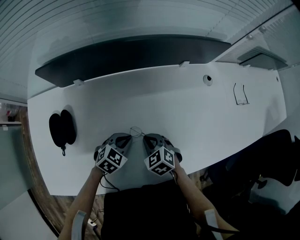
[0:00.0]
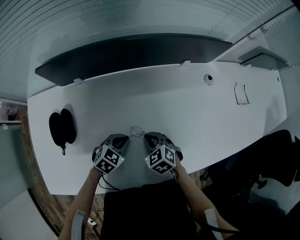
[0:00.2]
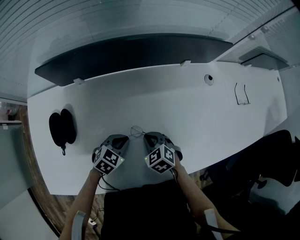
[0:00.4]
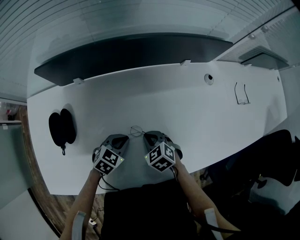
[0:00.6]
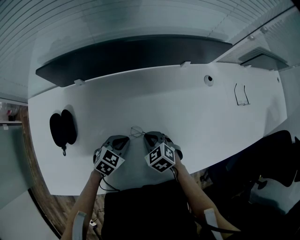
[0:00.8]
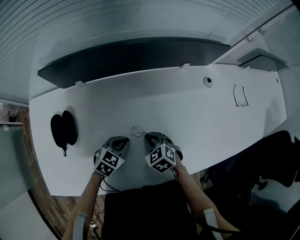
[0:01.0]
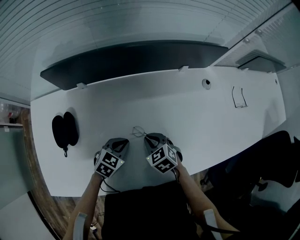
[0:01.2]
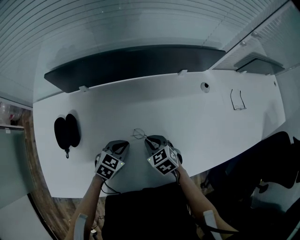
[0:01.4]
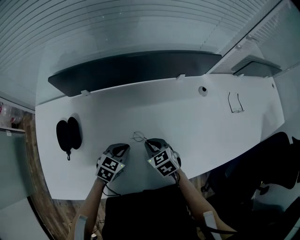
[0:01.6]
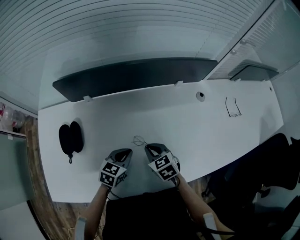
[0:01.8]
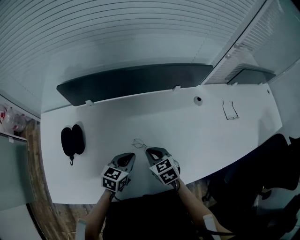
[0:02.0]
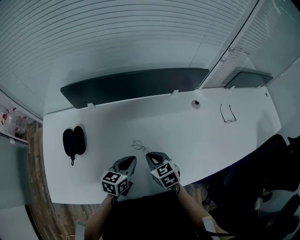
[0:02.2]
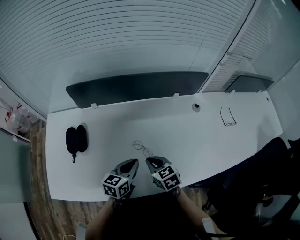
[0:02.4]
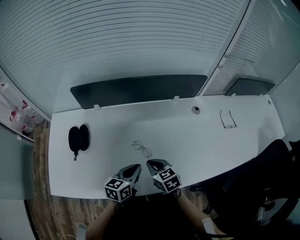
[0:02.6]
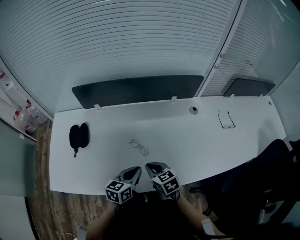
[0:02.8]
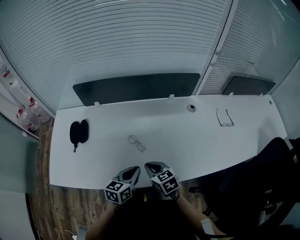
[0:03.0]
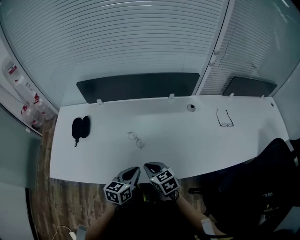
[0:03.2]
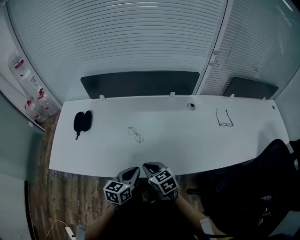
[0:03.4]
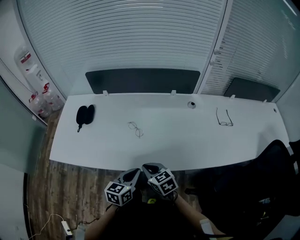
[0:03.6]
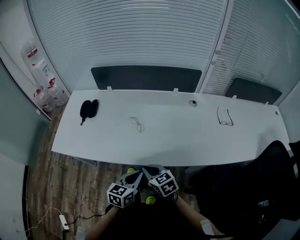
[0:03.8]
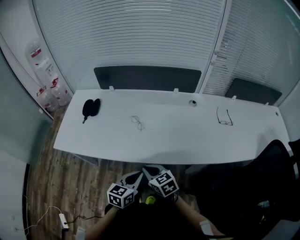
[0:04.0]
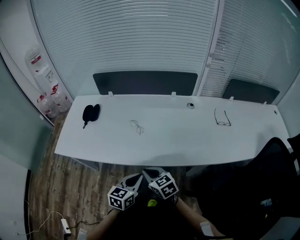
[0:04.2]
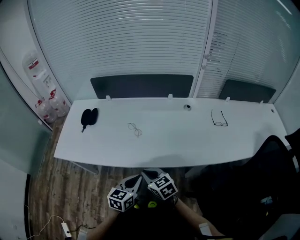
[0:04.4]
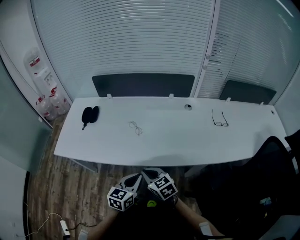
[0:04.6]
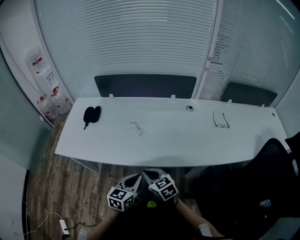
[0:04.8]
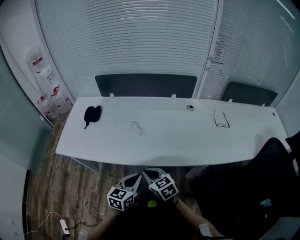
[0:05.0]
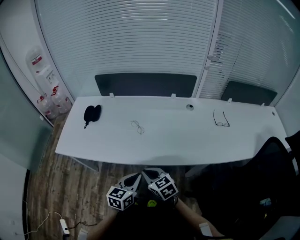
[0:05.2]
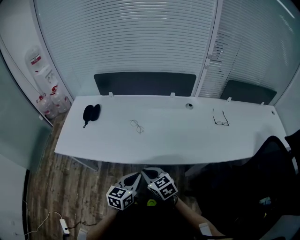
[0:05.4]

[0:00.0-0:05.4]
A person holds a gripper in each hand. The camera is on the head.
0:00.0 to 0:01.4: The grippers move only a little.
0:01.4 to 0:02.8: The right gripper is displaced backward and upward by approximately 15 cm. Meanwhile the left gripper heads backward, upward and to the right, covering about 15 cm, and turns by some 40 degrees.
0:02.8 to 0:04.0: Both grippers move backward, about 20 cm.
0:04.0 to 0:05.4: There are only small adjustments of the grippers.

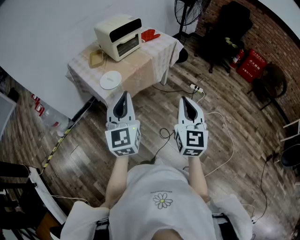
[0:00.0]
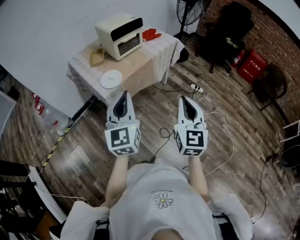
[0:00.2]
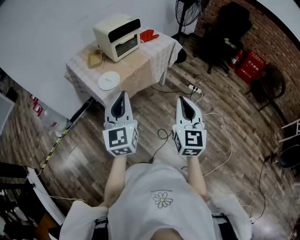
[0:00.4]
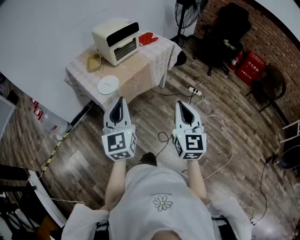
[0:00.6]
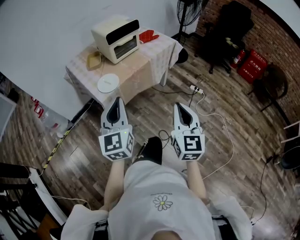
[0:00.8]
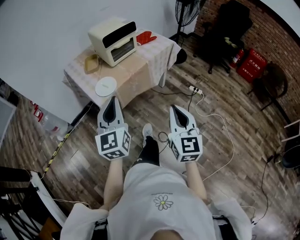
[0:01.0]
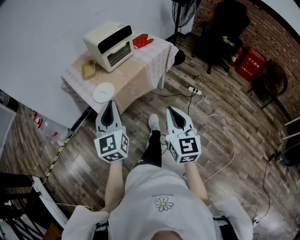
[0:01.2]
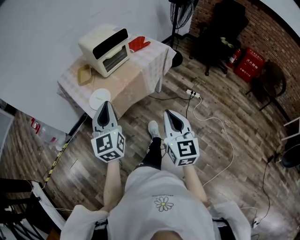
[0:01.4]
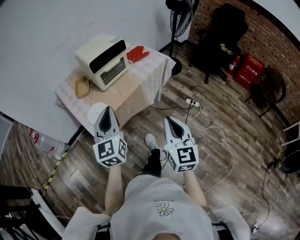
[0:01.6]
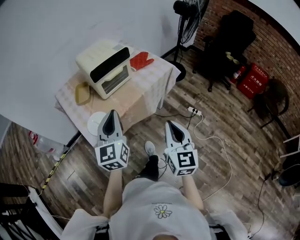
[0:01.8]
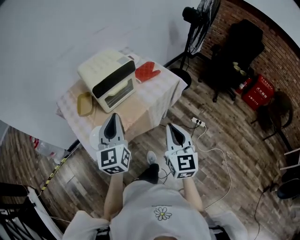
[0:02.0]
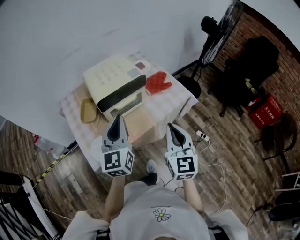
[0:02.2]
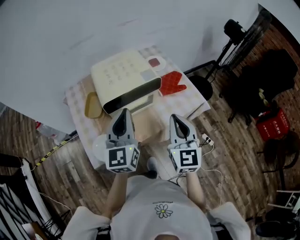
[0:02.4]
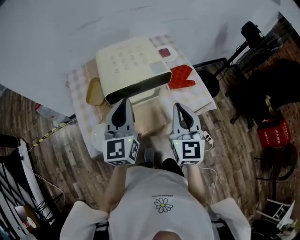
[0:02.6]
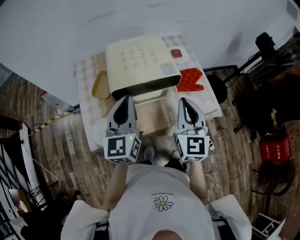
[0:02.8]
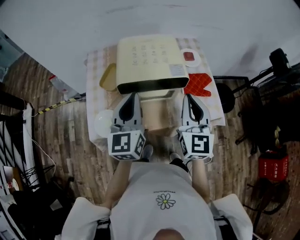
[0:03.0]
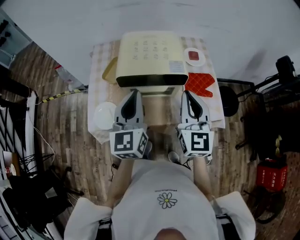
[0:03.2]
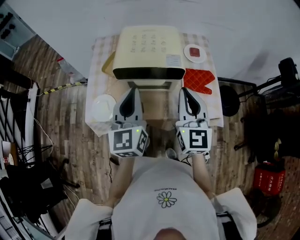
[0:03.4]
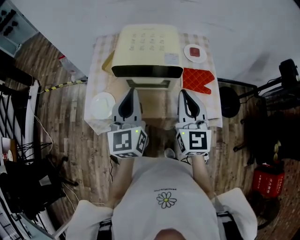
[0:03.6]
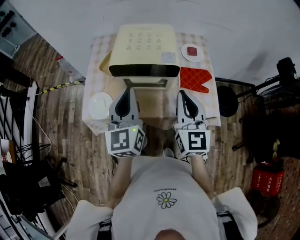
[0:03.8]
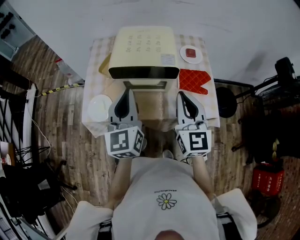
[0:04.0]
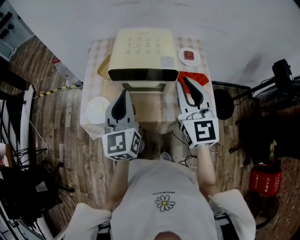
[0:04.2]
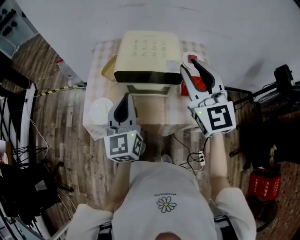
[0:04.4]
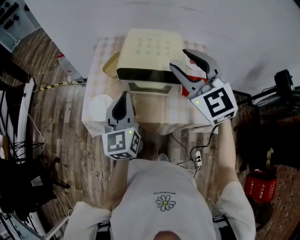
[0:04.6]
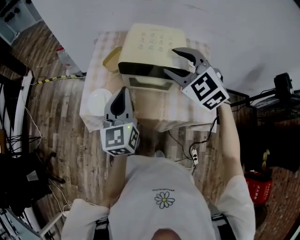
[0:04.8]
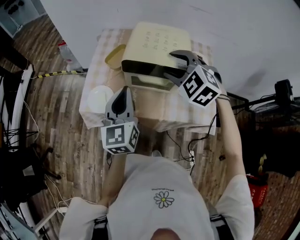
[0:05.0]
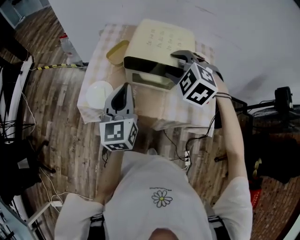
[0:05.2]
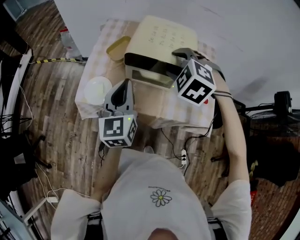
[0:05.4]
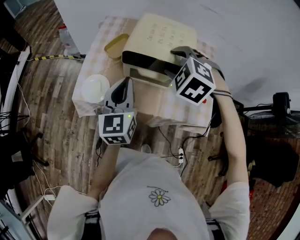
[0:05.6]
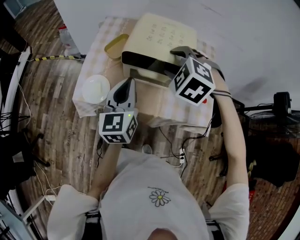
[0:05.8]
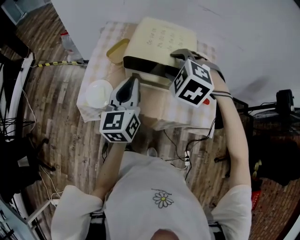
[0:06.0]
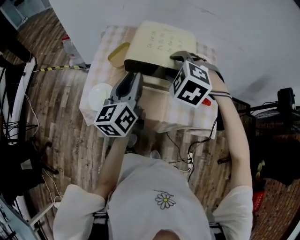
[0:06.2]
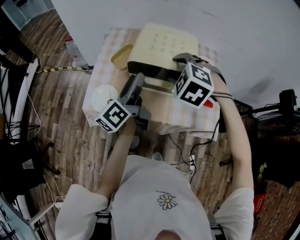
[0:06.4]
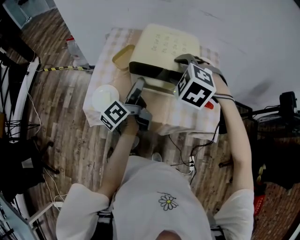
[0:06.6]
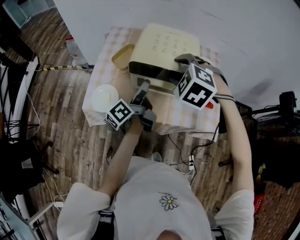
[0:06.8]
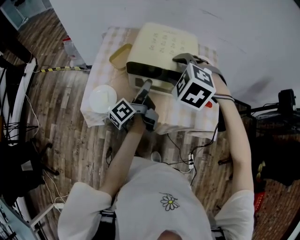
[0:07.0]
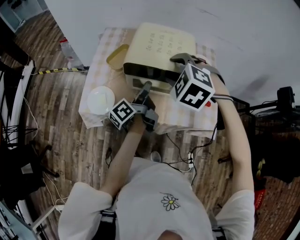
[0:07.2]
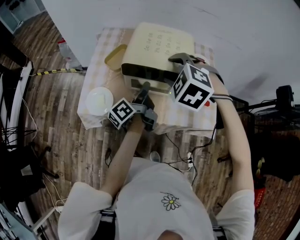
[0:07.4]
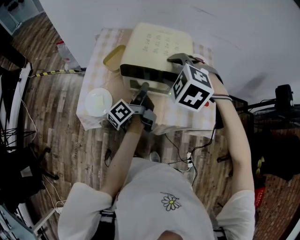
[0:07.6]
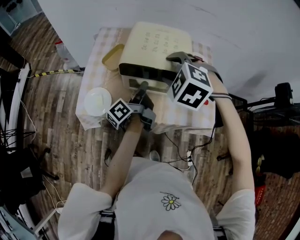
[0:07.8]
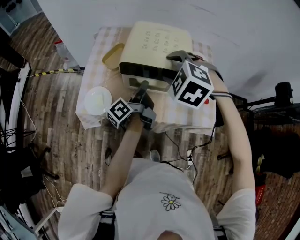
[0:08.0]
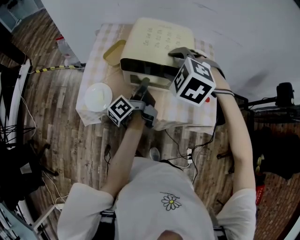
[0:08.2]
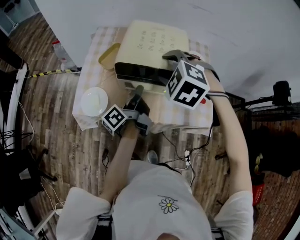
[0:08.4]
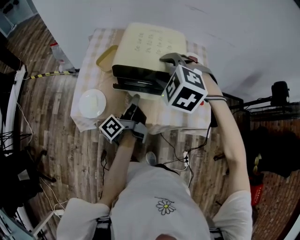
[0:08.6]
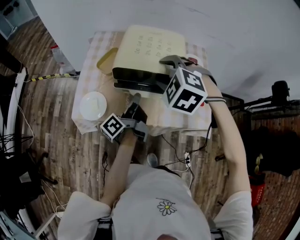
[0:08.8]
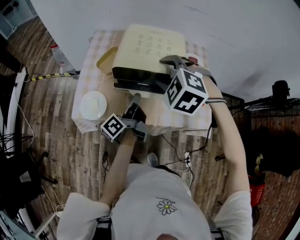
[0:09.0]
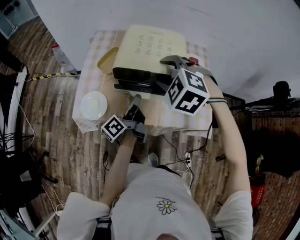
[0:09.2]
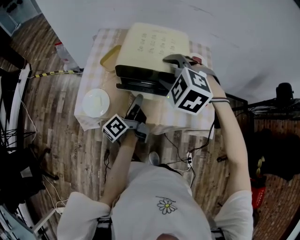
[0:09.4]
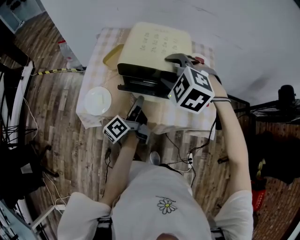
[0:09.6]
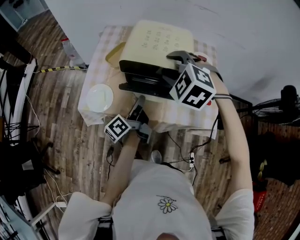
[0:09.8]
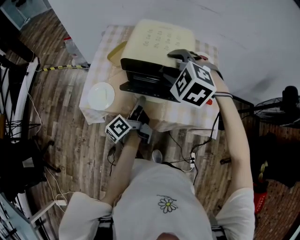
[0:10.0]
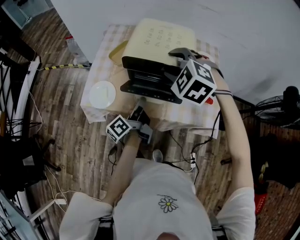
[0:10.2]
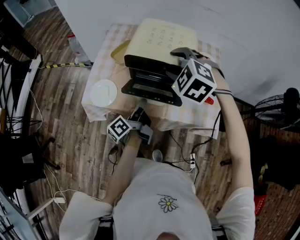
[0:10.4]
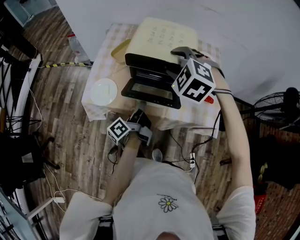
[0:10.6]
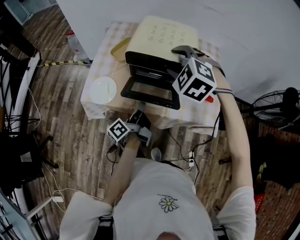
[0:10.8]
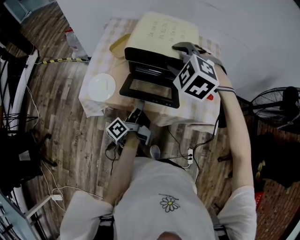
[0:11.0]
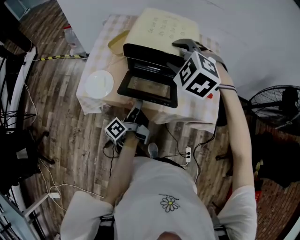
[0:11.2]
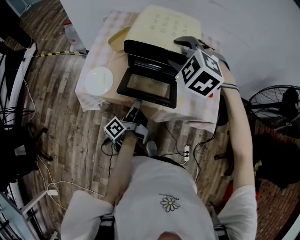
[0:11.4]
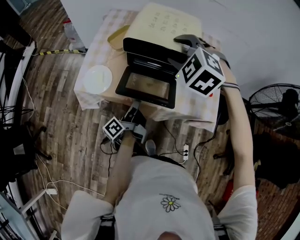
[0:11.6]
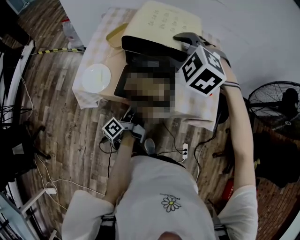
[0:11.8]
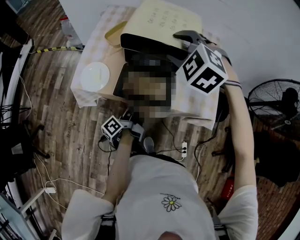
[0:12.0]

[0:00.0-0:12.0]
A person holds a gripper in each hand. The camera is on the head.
0:00.0 to 0:01.6: The two grippers go roughly 15 cm forward.
0:01.6 to 0:03.0: The right gripper moves roughly 50 cm, and swivels approximately 30 degrees. Meanwhile the left gripper shifts by approximately 30 cm, and swivels approximately 30 degrees.
0:03.0 to 0:04.4: The right gripper is displaced upward by roughly 10 cm, and changes its angle by approximately 30 degrees.
0:04.4 to 0:06.0: The right gripper heads downward, forward and to the left, covering some 15 cm, angles its fingers downward, by some 50 degrees, and opens its fingers.
0:06.0 to 0:07.6: The left gripper is displaced downward by approximately 10 cm, rolls counterclockwise, seen from behind, by approximately 70 degrees, and opens, then closes once more.
0:07.6 to 0:09.0: The grippers move only a little.
0:09.0 to 0:10.4: The left gripper heads backward and downward, covering roughly 10 cm.
0:10.4 to 0:12.0: The left gripper is displaced downward by about 10 cm, and closes up.

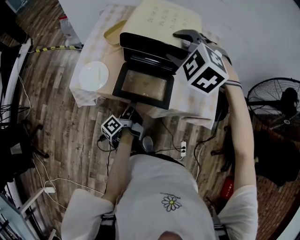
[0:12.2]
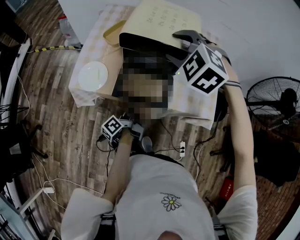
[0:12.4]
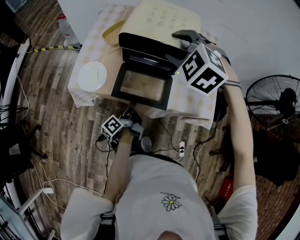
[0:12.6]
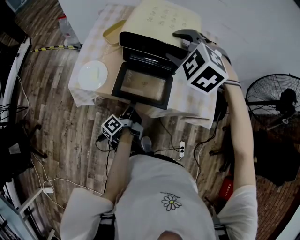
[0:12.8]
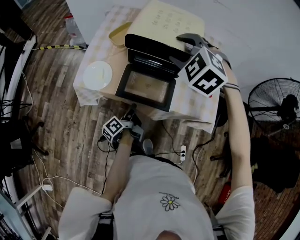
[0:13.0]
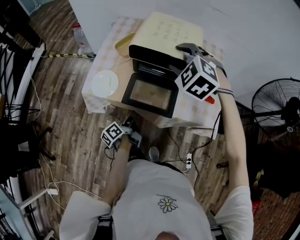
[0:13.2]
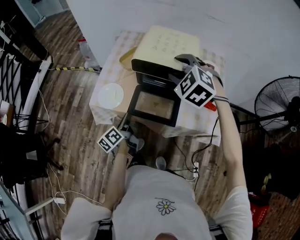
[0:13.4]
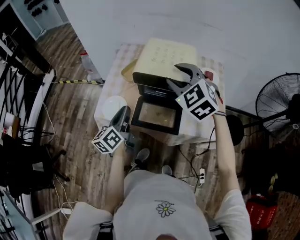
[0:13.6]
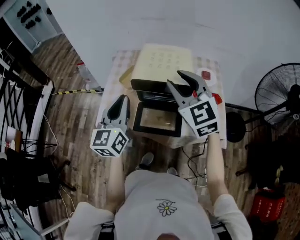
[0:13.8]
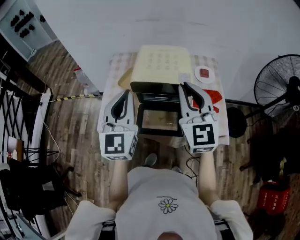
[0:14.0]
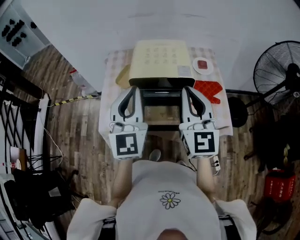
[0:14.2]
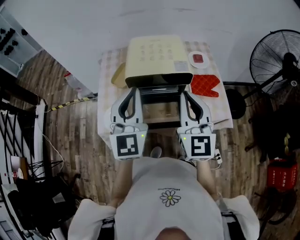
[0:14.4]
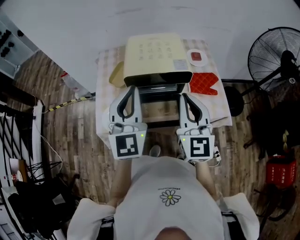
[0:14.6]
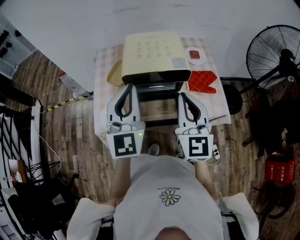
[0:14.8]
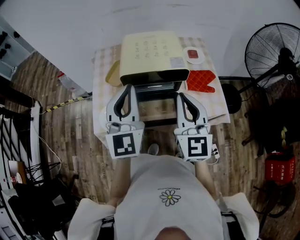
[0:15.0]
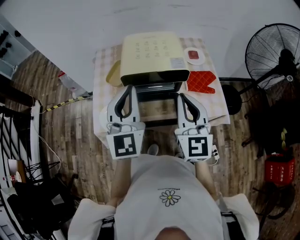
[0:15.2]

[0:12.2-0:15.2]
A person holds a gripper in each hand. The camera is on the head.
0:12.2 to 0:13.8: The left gripper is displaced upward by some 30 cm, and twists roughly 80 degrees clockwise, seen from behind. Meanwhile the right gripper travels upward by roughly 10 cm, and angles its fingers upward, by about 40 degrees.
0:13.8 to 0:15.2: The left gripper moves roughly 5 cm, and swivels about 20 degrees; the right gripper heads backward and downward, covering some 10 cm, changes its angle by approximately 30 degrees, and closes.

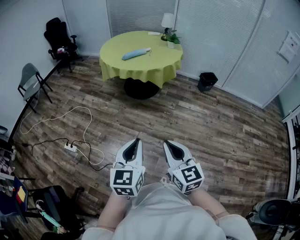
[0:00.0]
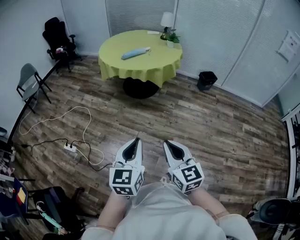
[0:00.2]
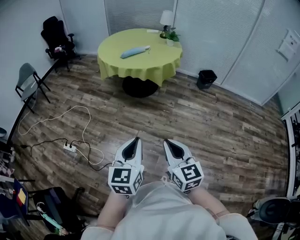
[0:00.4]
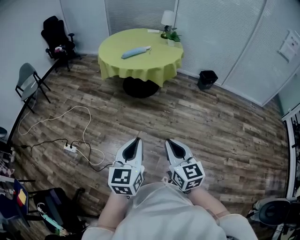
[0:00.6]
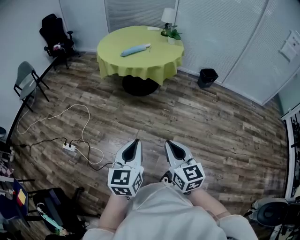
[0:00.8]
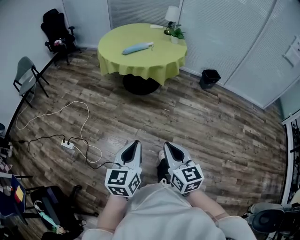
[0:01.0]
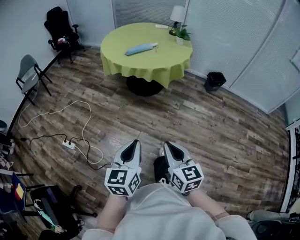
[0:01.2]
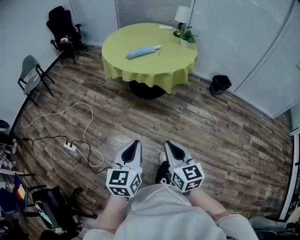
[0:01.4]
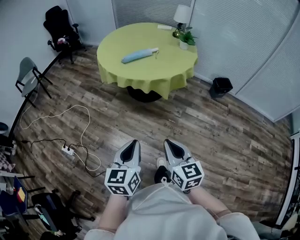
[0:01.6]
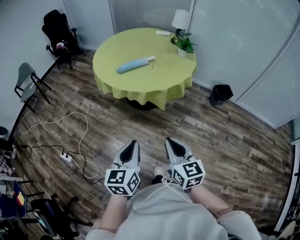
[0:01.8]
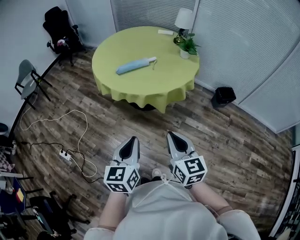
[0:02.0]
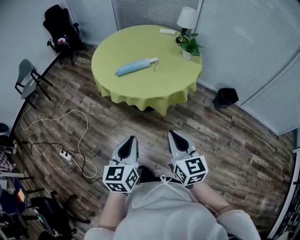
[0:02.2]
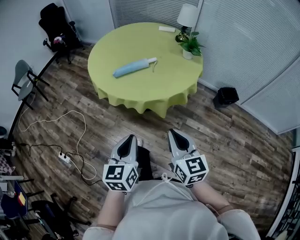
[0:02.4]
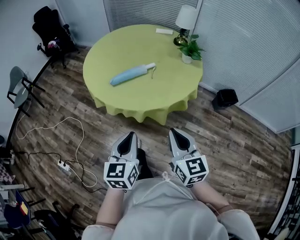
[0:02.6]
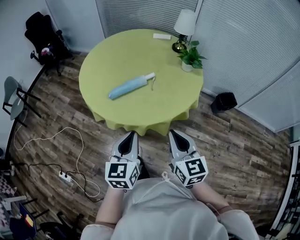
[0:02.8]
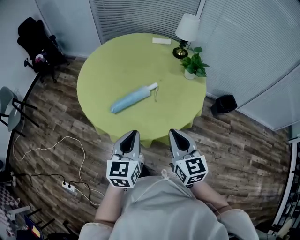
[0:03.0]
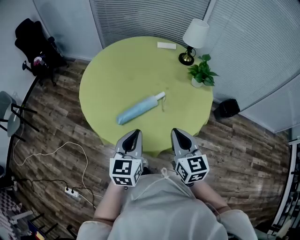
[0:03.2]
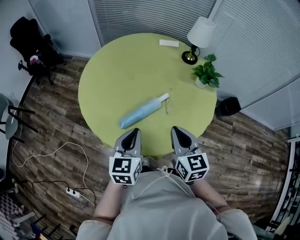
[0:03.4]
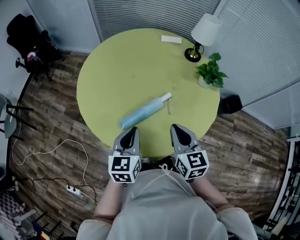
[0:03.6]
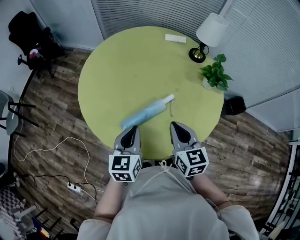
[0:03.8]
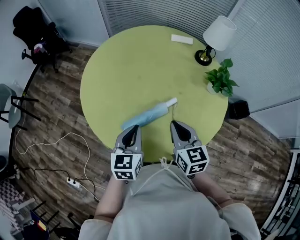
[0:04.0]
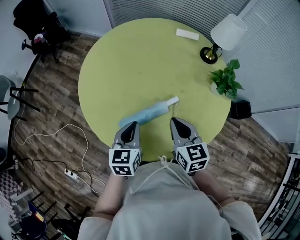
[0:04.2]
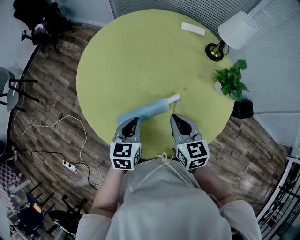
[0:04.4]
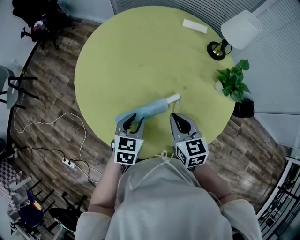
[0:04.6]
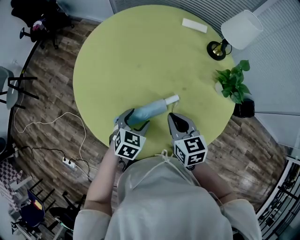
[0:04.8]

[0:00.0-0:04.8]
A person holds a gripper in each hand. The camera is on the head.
0:00.0 to 0:01.6: The two grippers go some 30 cm forward.
0:01.6 to 0:03.2: Both grippers are carried forward, roughly 60 cm.
0:03.2 to 0:04.8: The two grippers go about 25 cm forward and downward. The right gripper turns by about 20 degrees, while the left gripper tilts its fingers roughly 30 degrees downward, and opens.
